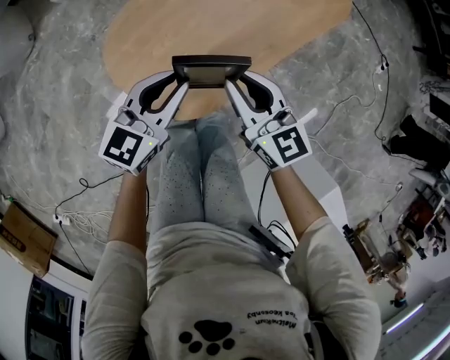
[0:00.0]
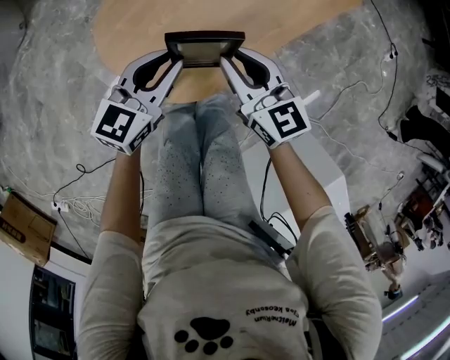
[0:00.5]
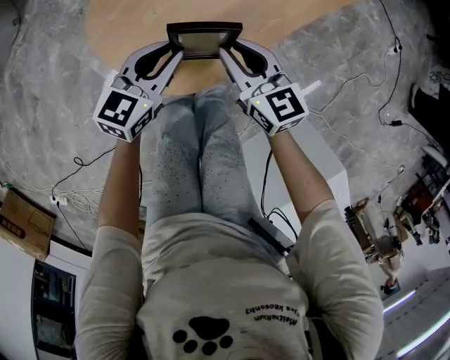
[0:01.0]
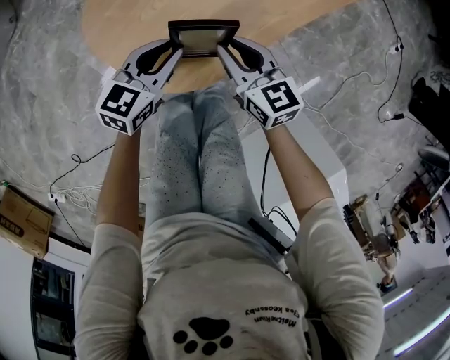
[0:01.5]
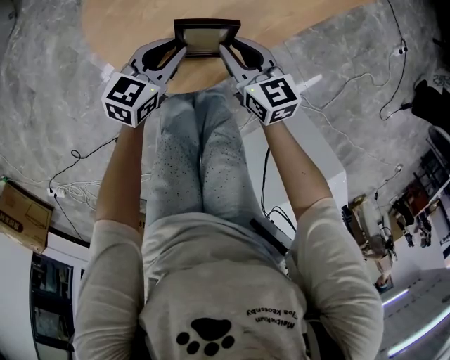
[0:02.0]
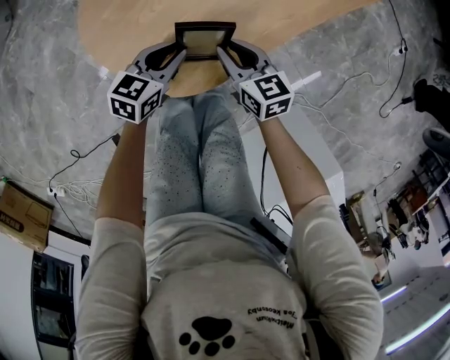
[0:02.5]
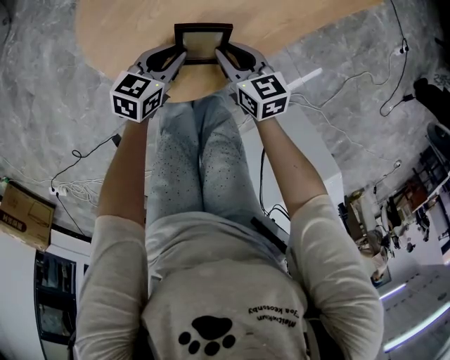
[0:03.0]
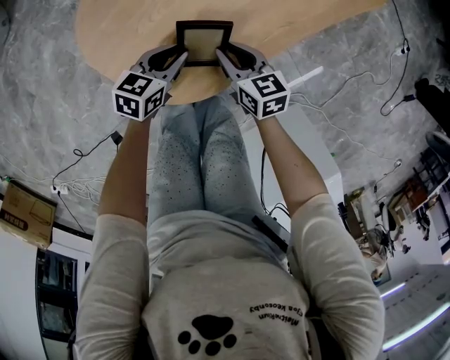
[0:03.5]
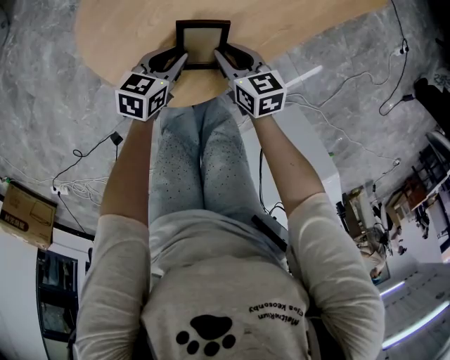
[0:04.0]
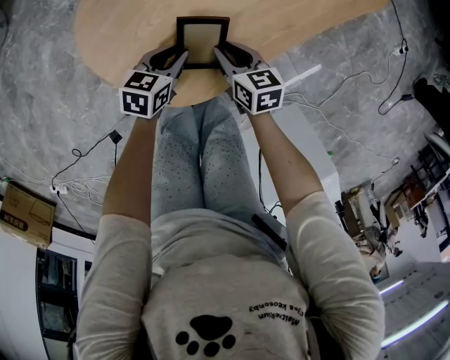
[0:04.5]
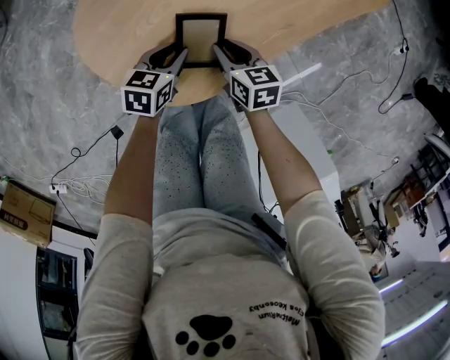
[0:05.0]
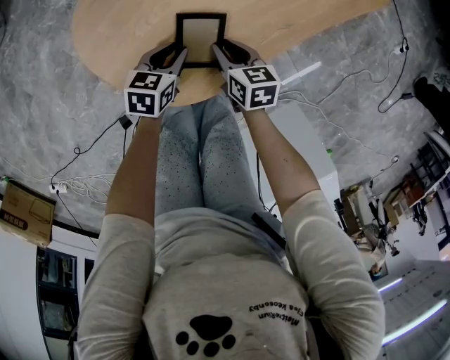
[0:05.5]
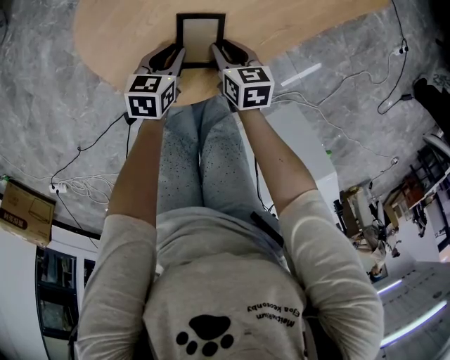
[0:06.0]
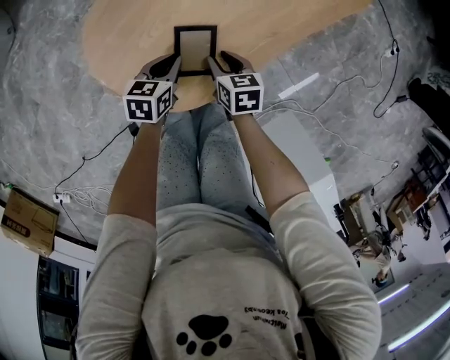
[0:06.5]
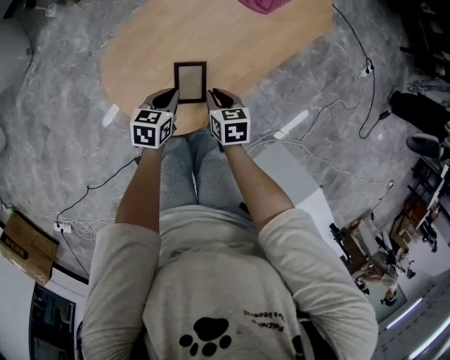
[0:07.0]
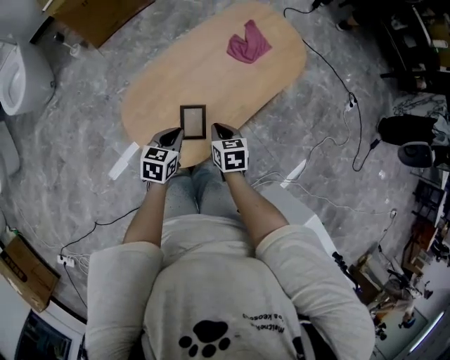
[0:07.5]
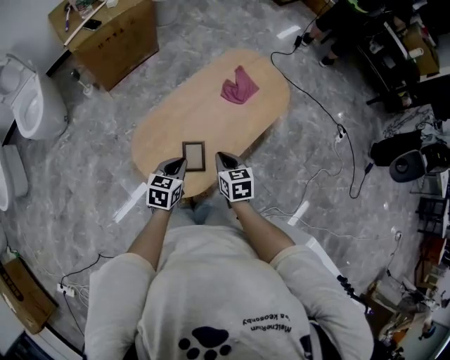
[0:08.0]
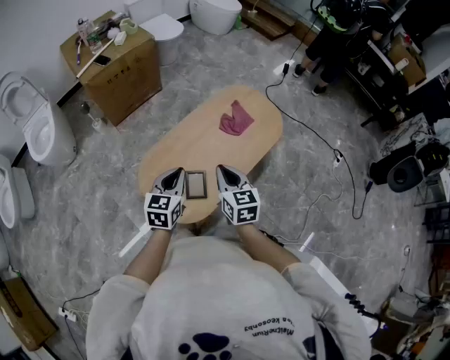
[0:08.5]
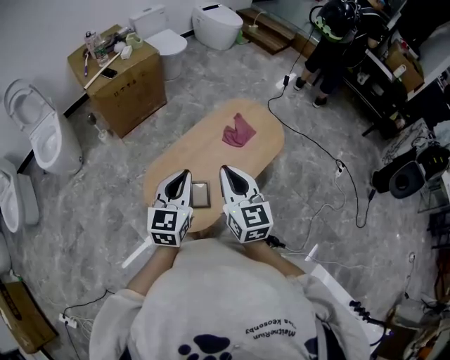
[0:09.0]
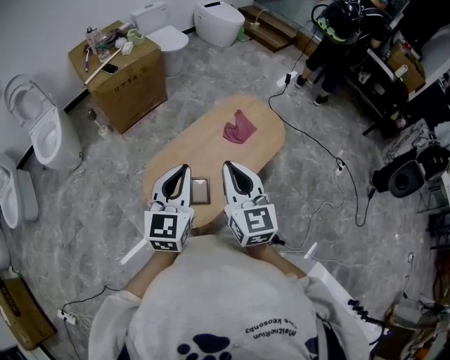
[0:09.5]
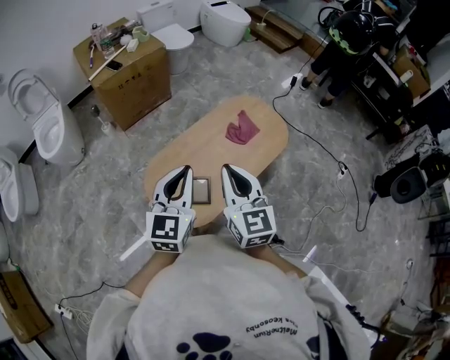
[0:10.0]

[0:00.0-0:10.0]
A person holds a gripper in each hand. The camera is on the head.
0:00.0 to 0:02.0: Both grippers move downward, about 15 cm.
0:02.0 to 0:04.0: Both grippers move downward, about 5 cm.
0:04.0 to 0:06.0: There are only small adjustments of the grippers.
0:06.0 to 0:08.0: Both grippers travel together upward, approximately 30 cm. The right gripper changes its angle by about 20 degrees, and closes; the left gripper turns by some 20 degrees.
0:08.0 to 0:10.0: Both grippers move upward, some 30 cm. The left gripper swivels some 40 degrees; the right gripper points its fingers some 30 degrees further upward.

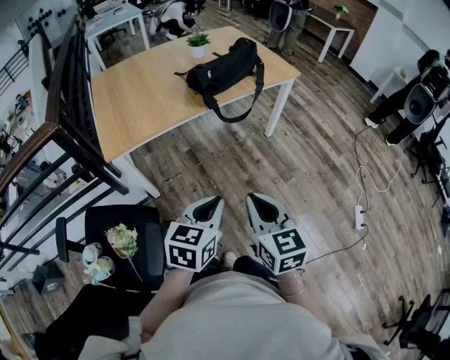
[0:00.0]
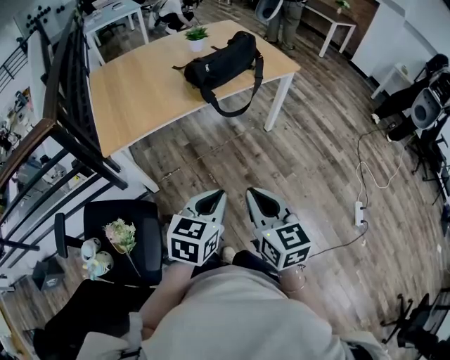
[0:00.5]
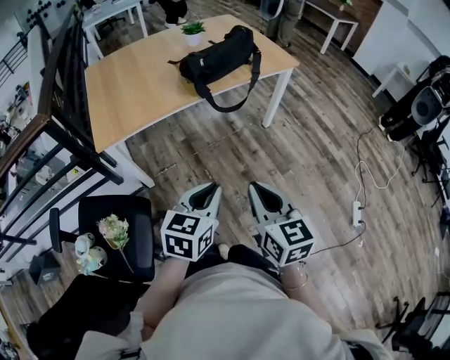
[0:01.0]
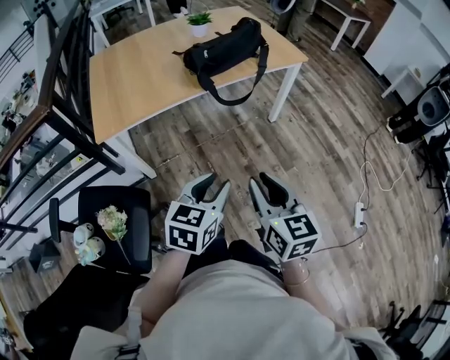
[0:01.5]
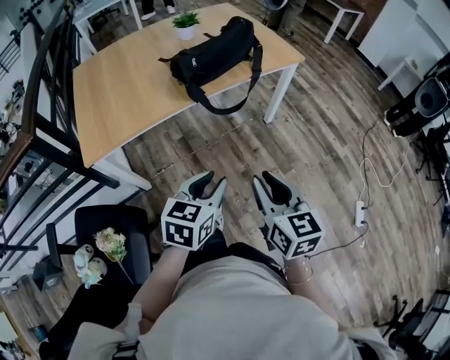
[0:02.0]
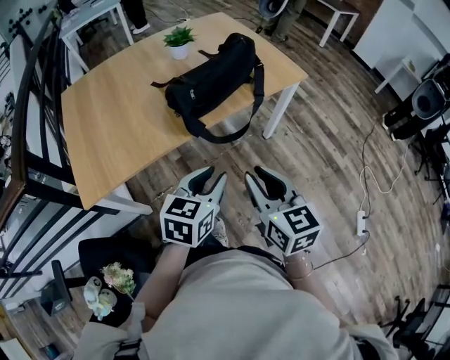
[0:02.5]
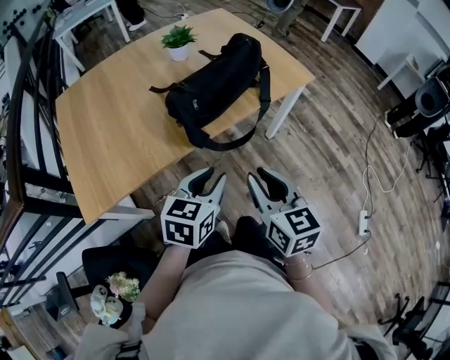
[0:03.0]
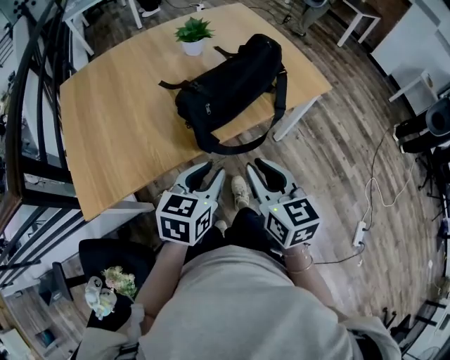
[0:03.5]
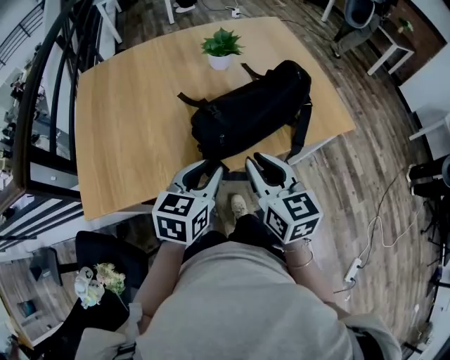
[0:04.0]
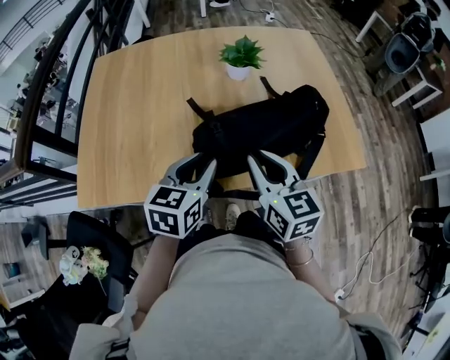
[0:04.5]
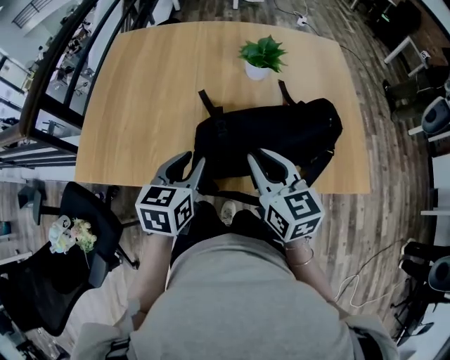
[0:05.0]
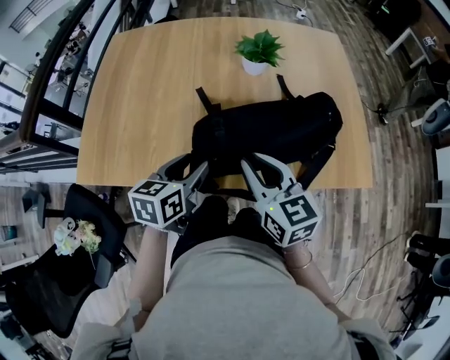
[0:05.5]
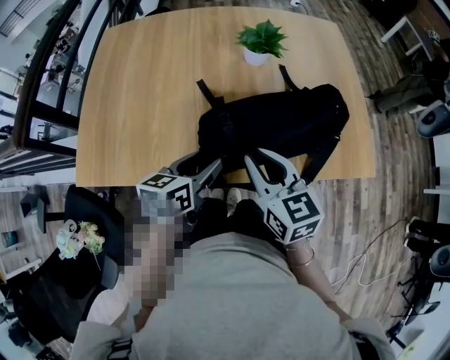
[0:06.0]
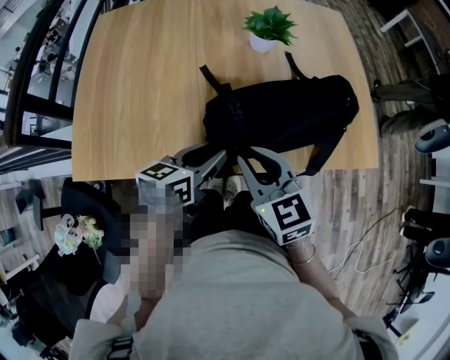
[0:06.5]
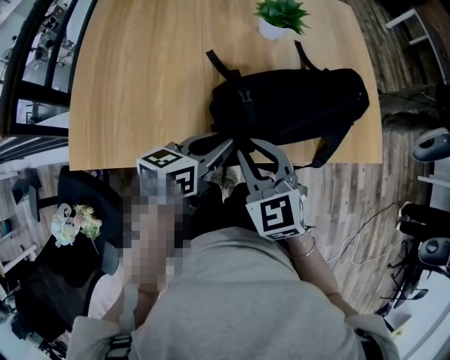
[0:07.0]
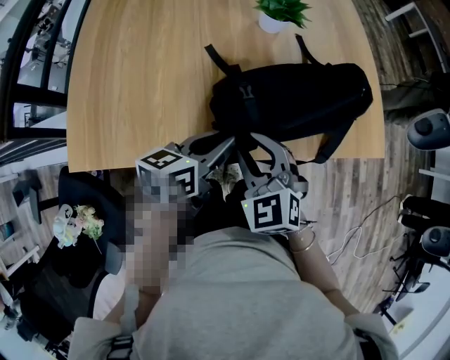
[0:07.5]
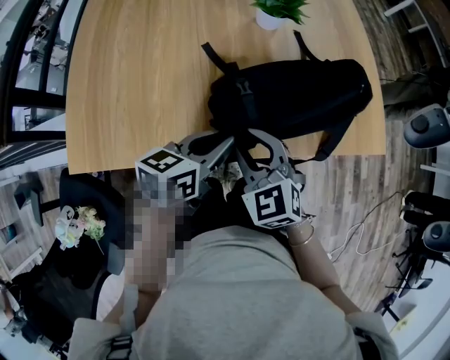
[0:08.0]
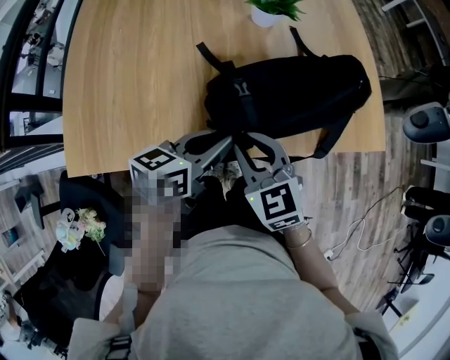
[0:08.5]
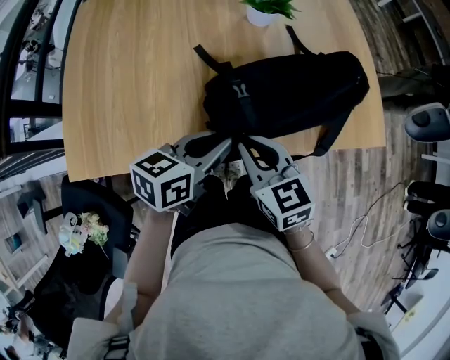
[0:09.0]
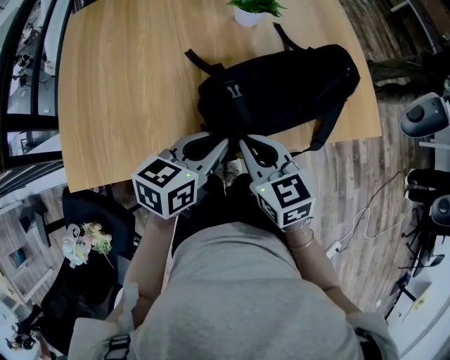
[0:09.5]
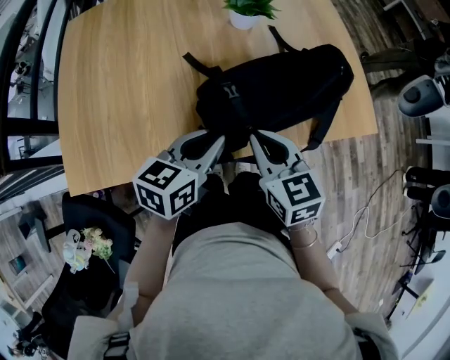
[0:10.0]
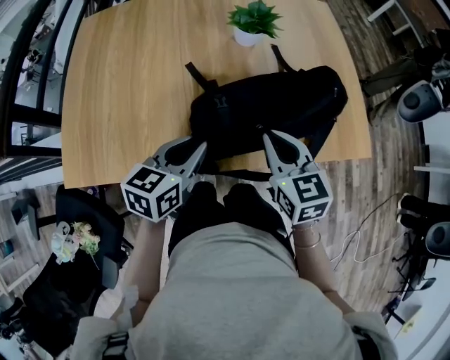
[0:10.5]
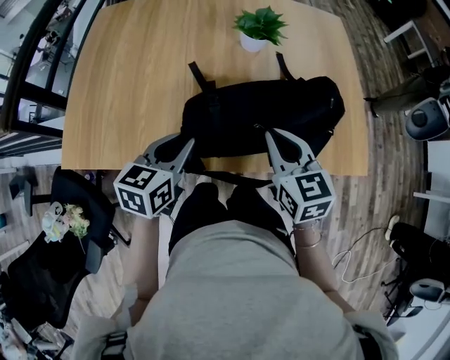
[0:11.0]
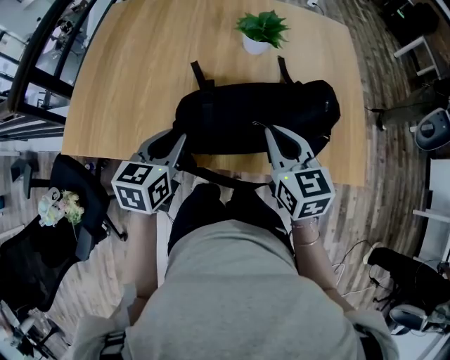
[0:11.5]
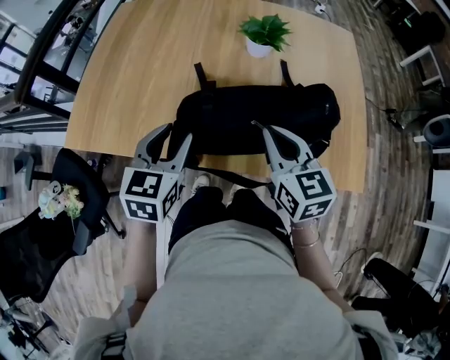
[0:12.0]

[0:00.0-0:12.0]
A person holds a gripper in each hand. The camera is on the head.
0:00.0 to 0:02.0: The left gripper shifts approximately 15 cm forward, and opens. Meanwhile the right gripper heads forward and to the right, covering about 15 cm, and opens up.
0:02.0 to 0:04.0: The grippers both shift forward by about 35 cm.
0:04.0 to 0:06.0: The left gripper travels forward and downward by about 10 cm, swivels roughly 30 degrees, and opens up; the right gripper is displaced forward by approximately 10 cm, and changes its angle by some 20 degrees.
0:06.0 to 0:08.0: The right gripper travels to the left and downward by roughly 10 cm, and turns by some 30 degrees, while the left gripper closes up.
0:08.0 to 0:10.0: The right gripper shifts by approximately 5 cm, swivels roughly 30 degrees, and closes.
0:10.0 to 0:12.0: The right gripper moves roughly 10 cm; the left gripper turns by about 40 degrees, and opens.

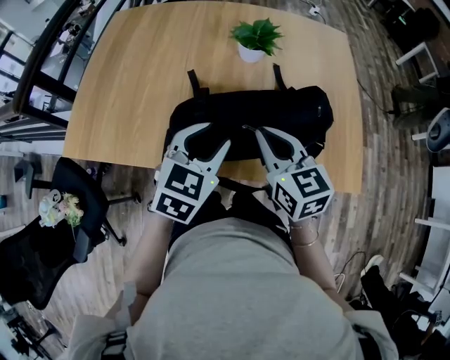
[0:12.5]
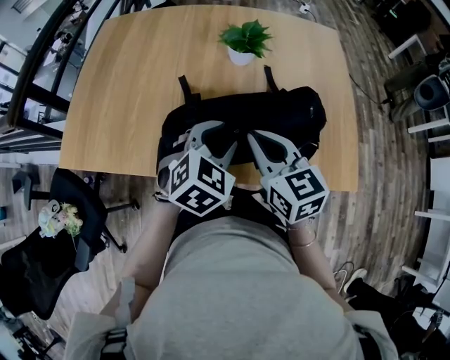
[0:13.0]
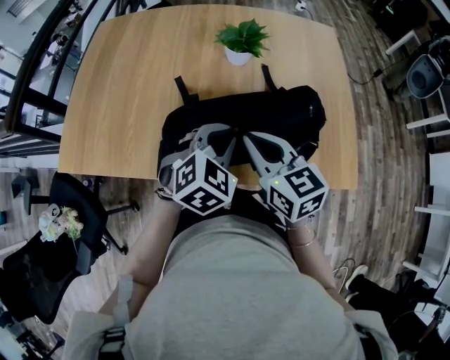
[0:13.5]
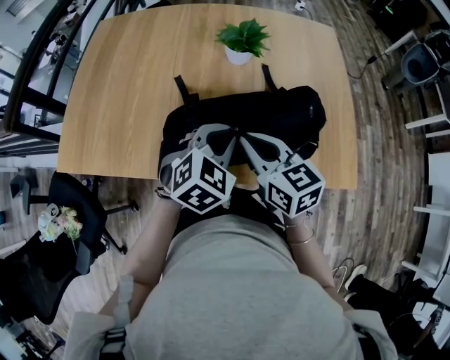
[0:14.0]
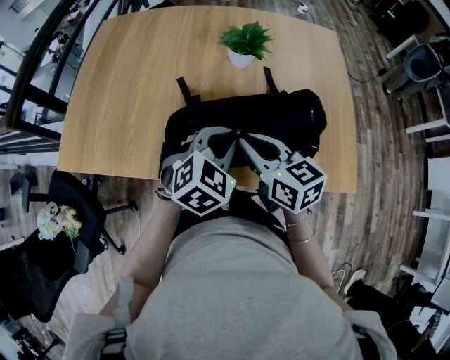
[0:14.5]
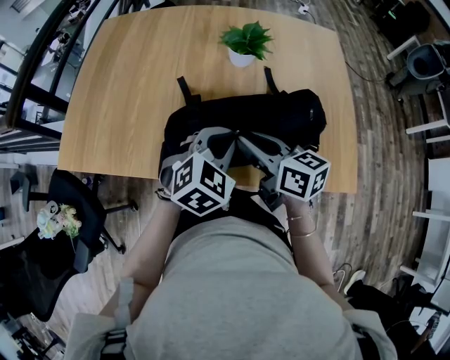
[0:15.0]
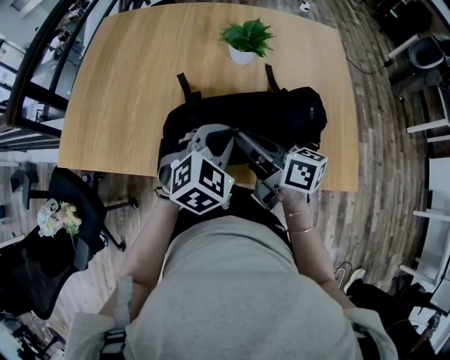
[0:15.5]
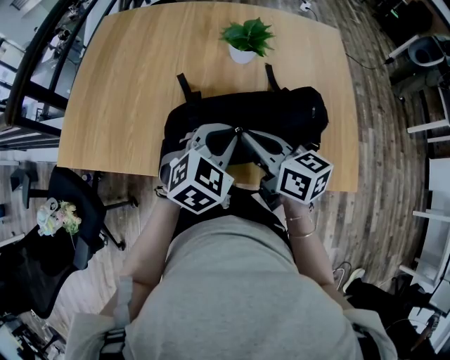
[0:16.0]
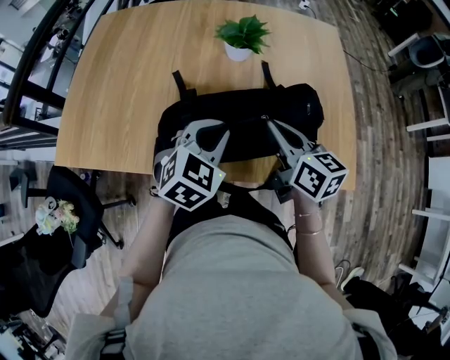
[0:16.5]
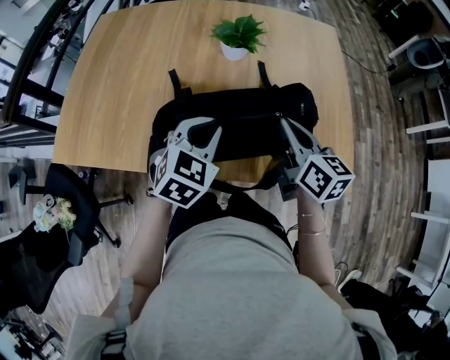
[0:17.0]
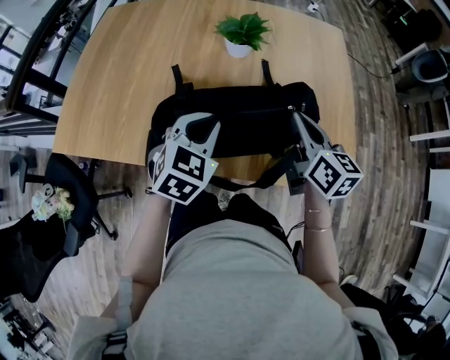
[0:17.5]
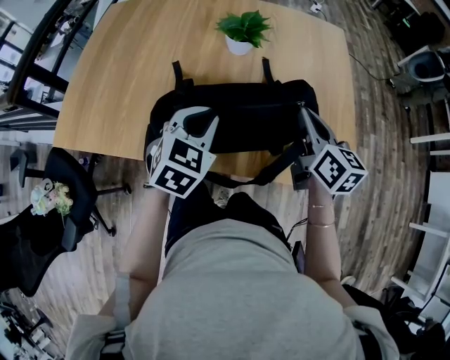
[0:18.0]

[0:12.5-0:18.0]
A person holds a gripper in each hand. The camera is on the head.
0:12.5 to 0:14.5: The left gripper heads to the right, covering approximately 5 cm, swivels approximately 20 degrees, and closes up.
0:16.0 to 0:18.0: The right gripper goes about 15 cm to the right, and turns by about 20 degrees.
